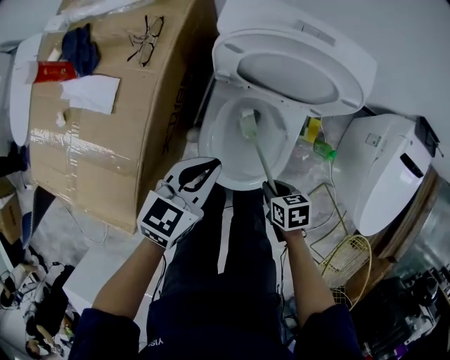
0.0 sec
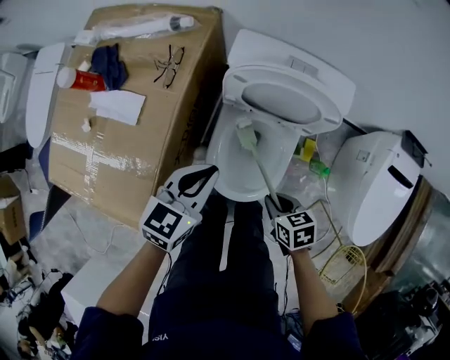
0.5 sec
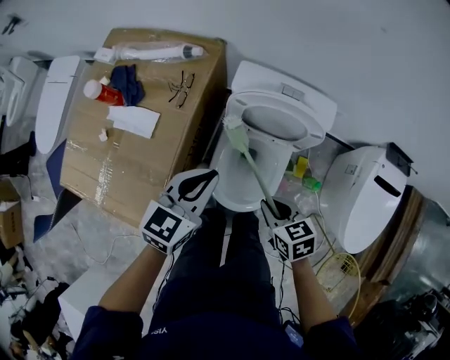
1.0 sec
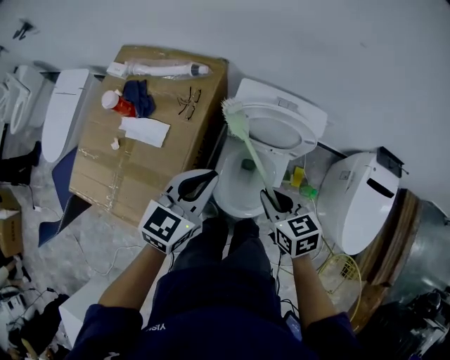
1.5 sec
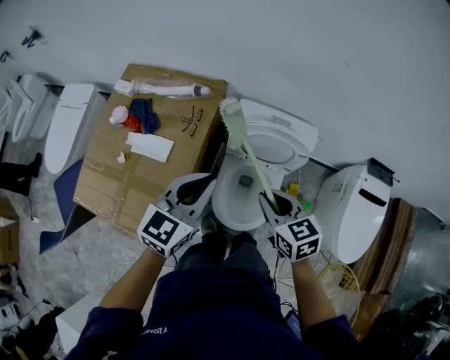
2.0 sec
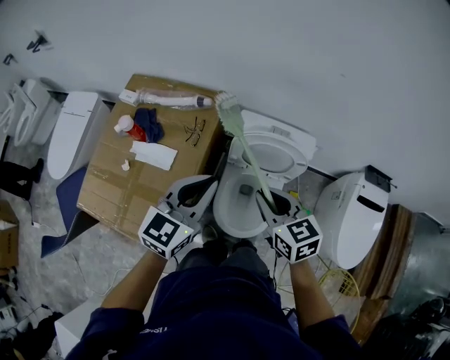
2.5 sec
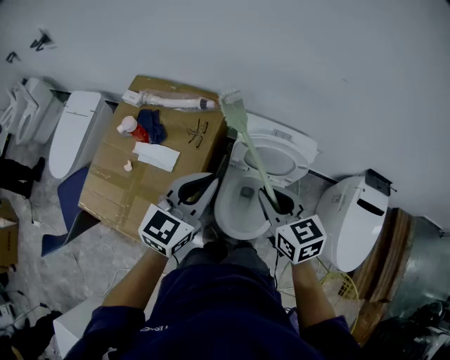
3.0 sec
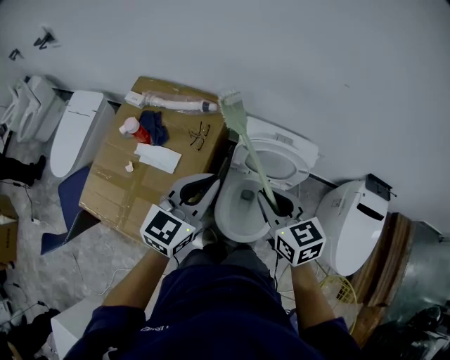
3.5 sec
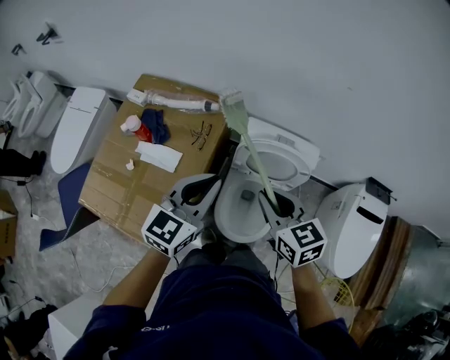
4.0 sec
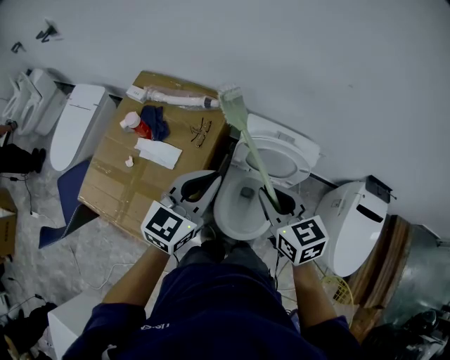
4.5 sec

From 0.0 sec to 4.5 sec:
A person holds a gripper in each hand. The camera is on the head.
From 0.0 sec to 2.0 sec: The two grippers go some 35 cm upward. The left gripper turns by about 20 degrees; the right gripper turns by roughly 40 degrees.
From 2.0 sec to 4.5 sec: The right gripper goes roughly 10 cm upward.

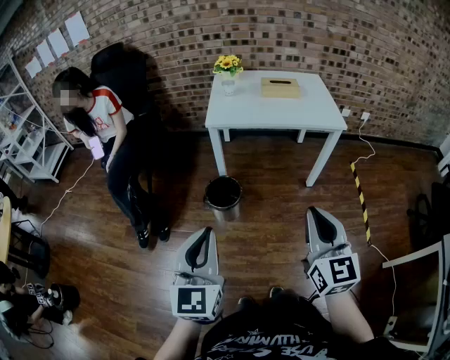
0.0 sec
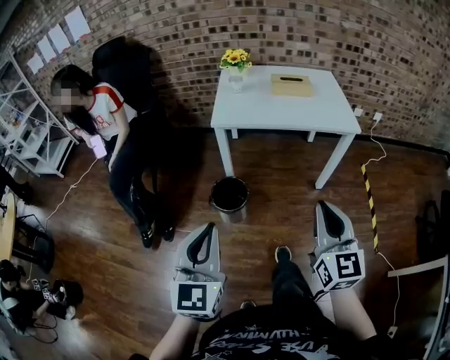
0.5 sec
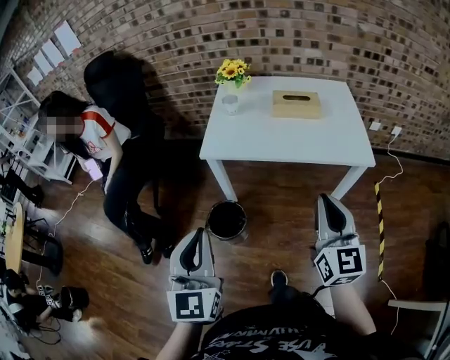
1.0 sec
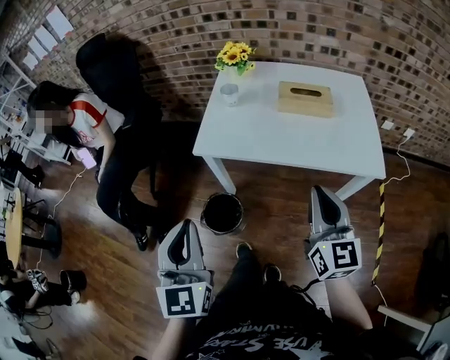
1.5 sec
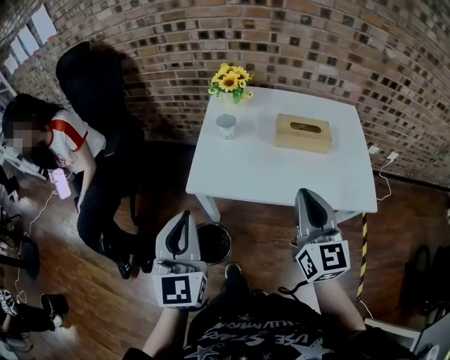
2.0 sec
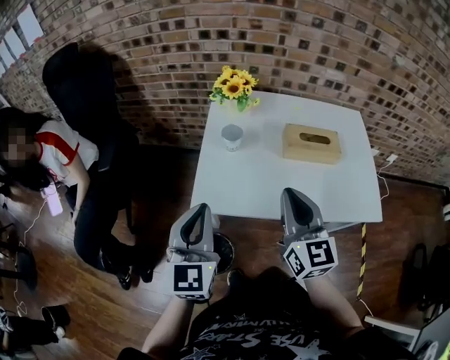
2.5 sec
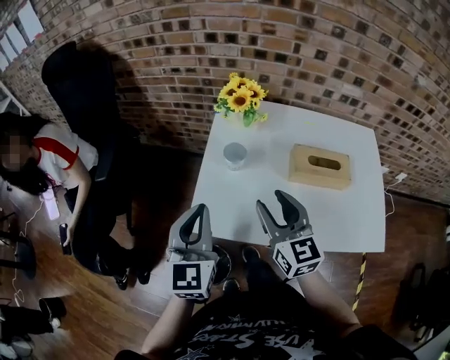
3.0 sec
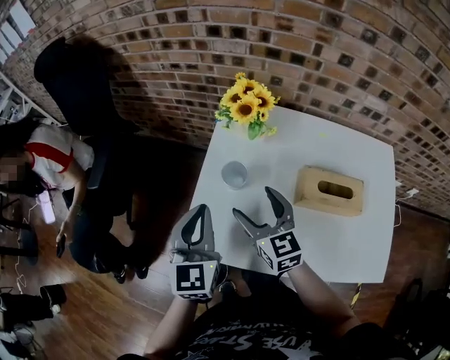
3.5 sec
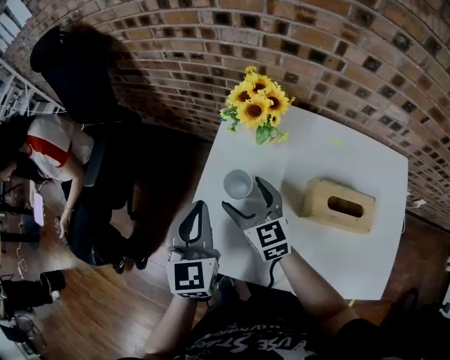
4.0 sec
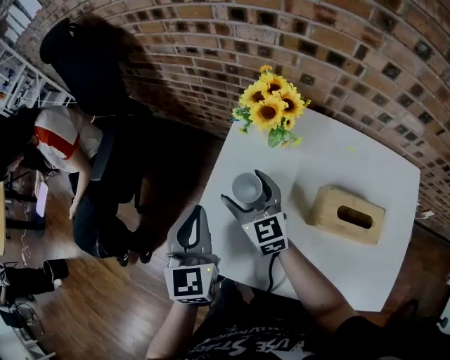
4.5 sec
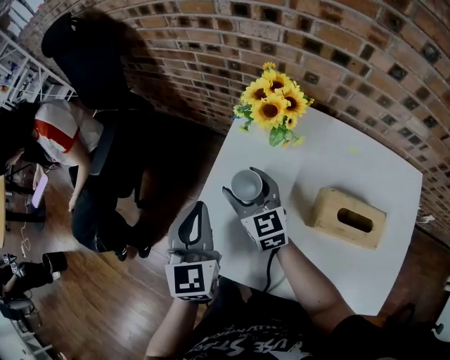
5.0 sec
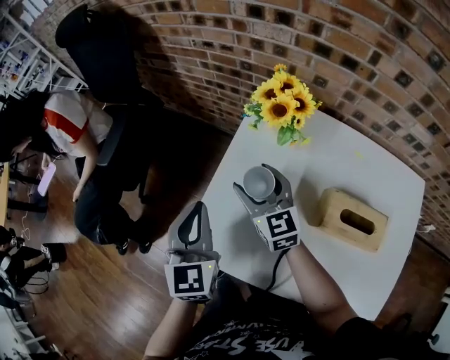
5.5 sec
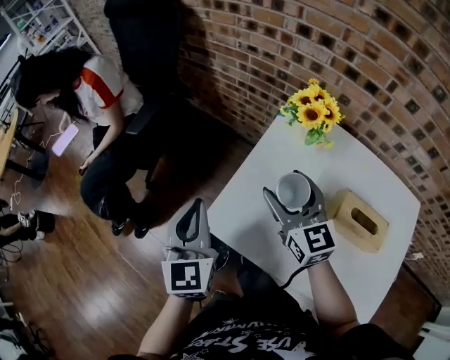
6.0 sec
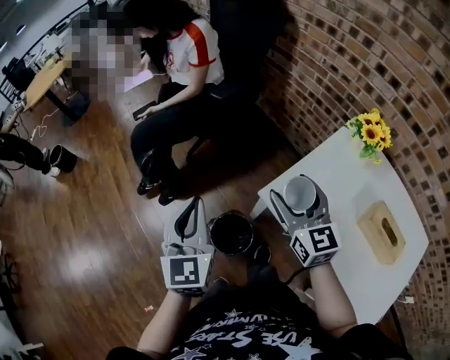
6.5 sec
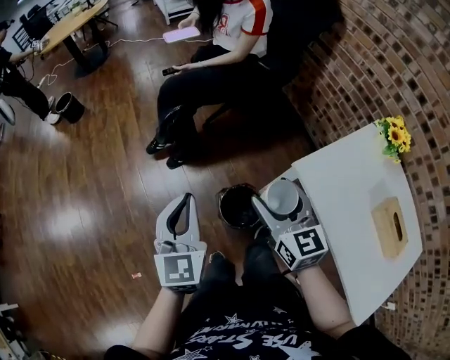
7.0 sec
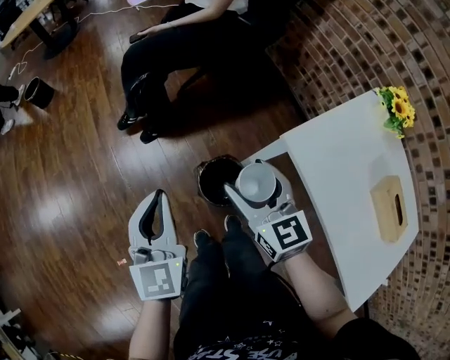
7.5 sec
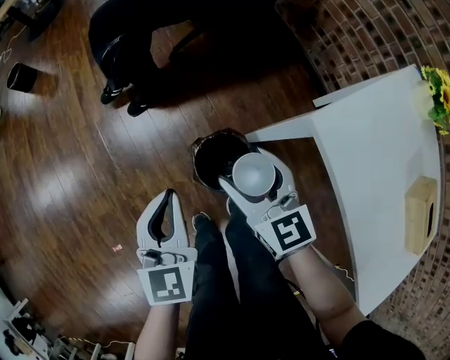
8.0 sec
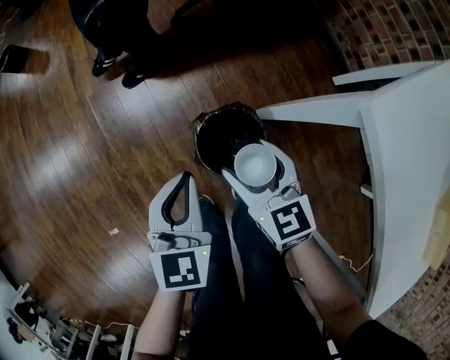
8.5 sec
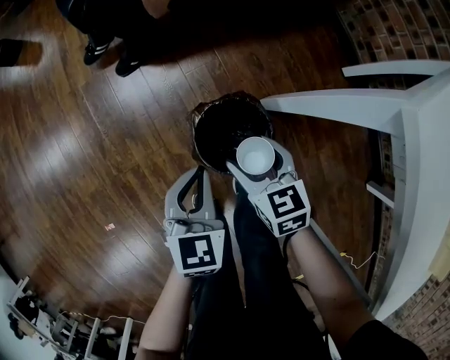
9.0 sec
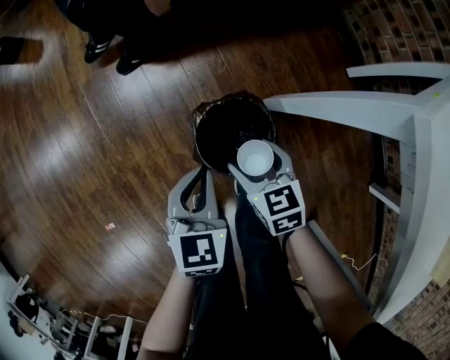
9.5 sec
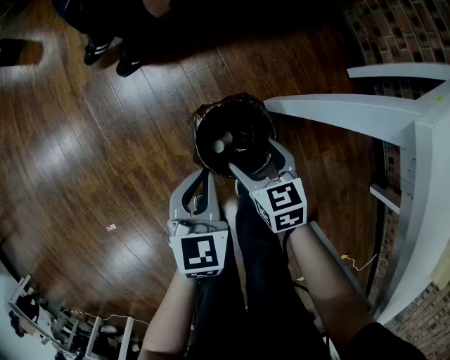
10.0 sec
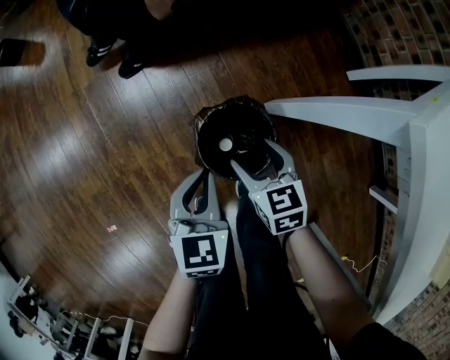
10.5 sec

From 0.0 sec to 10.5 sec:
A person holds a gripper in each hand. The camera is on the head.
From 0.0 sec to 2.0 sec: The two grippers travel together, forward, roughly 50 cm.
From 2.0 sec to 4.0 sec: Both grippers travel together forward and downward, some 35 cm. The right gripper rotates roughly 40 degrees, and opens its fingers.
From 4.0 sec to 6.5 sec: The right gripper moves approximately 25 cm, and swivels roughly 30 degrees. The left gripper ends up roughly 35 cm from where it was, and rotates approximately 40 degrees.
From 6.5 sec to 8.5 sec: The left gripper goes approximately 35 cm downward, and changes its angle by roughly 20 degrees. Meanwhile the right gripper is displaced downward and to the left by about 40 cm, and swivels approximately 30 degrees.
From 8.5 sec to 10.5 sec: Both grippers move downward, about 15 cm.

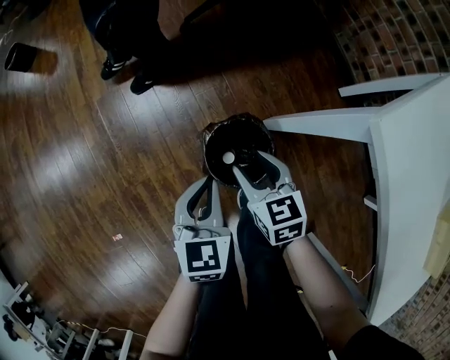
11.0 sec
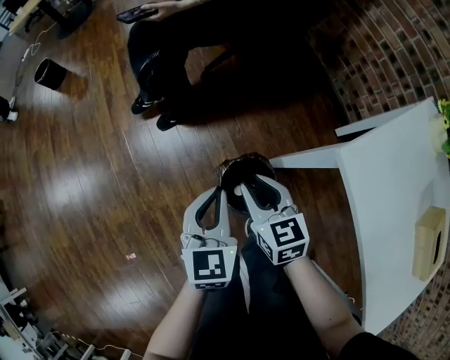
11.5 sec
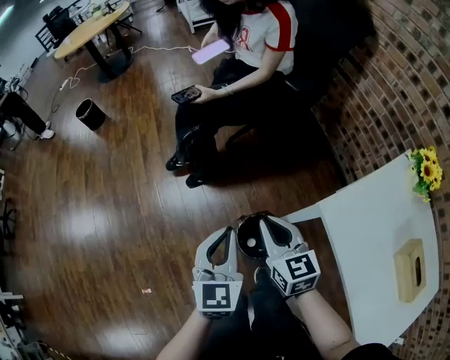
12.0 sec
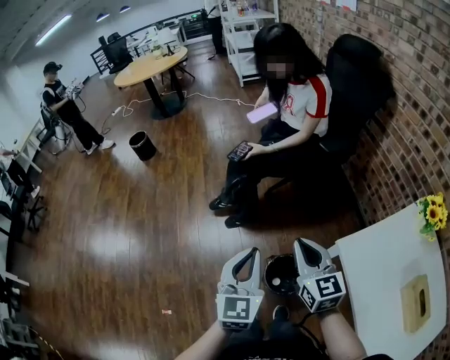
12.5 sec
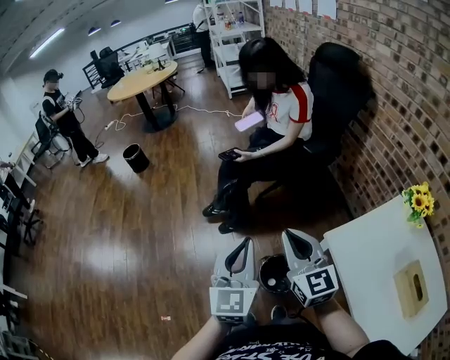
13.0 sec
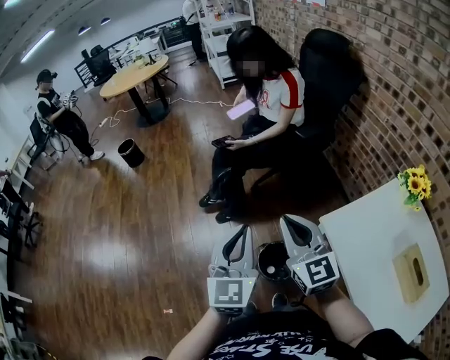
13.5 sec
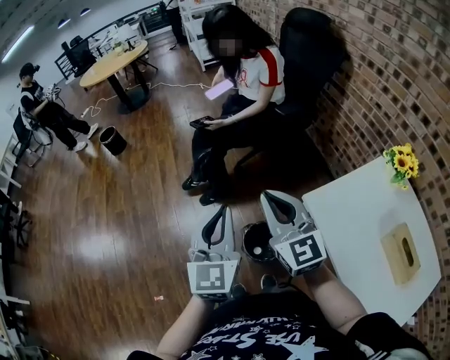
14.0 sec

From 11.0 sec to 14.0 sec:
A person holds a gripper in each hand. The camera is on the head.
From 11.0 sec to 12.5 sec: The grippers both shift upward by about 40 cm. The left gripper rotates approximately 30 degrees. Meanwhile the right gripper tilts its fingers about 30 degrees upward, and closes its fingers.
From 12.5 sec to 14.0 sec: The grippers both shift upward by approximately 10 cm.

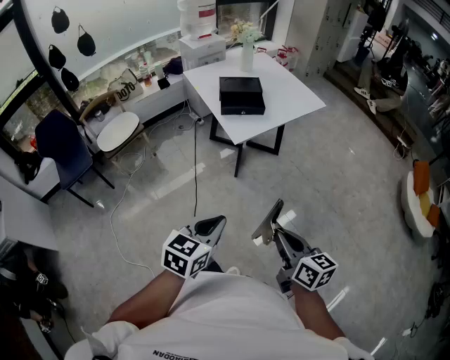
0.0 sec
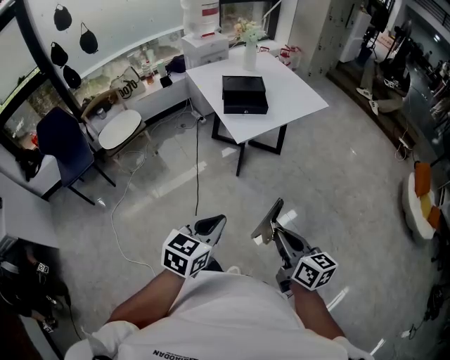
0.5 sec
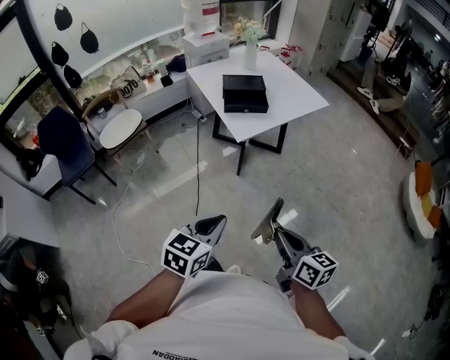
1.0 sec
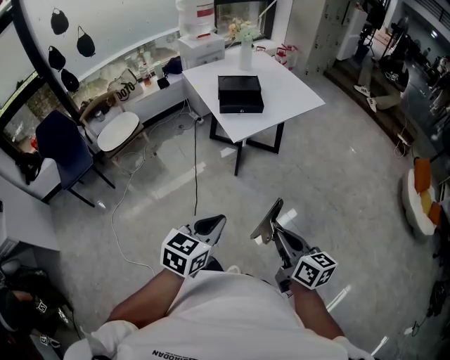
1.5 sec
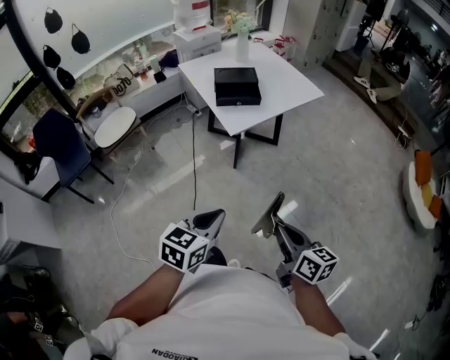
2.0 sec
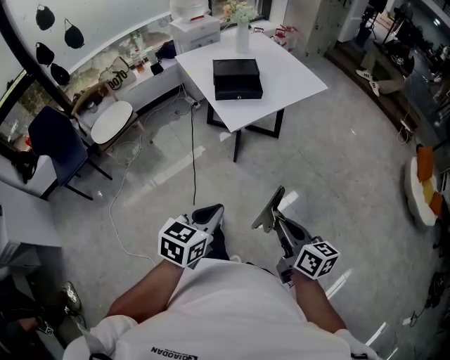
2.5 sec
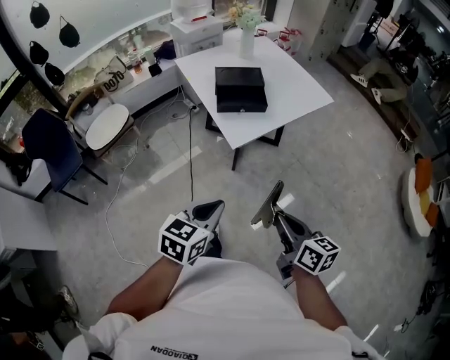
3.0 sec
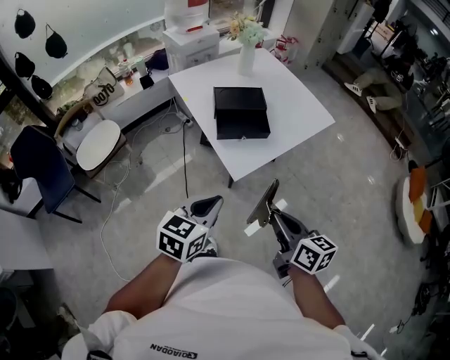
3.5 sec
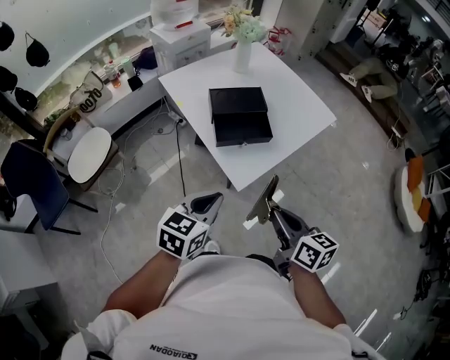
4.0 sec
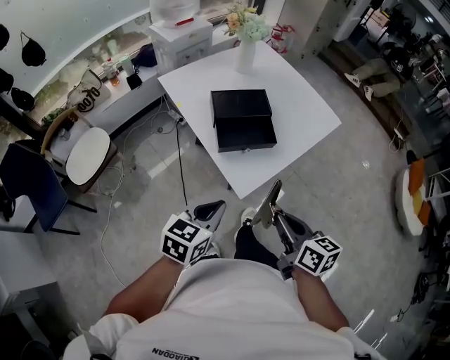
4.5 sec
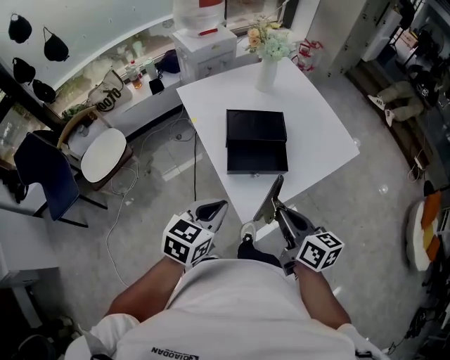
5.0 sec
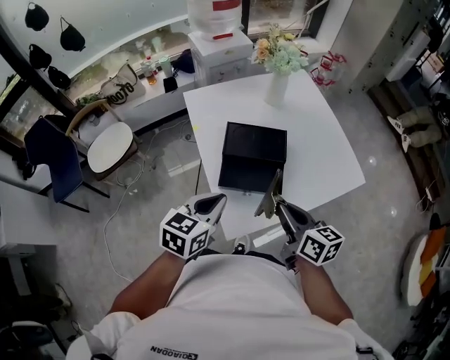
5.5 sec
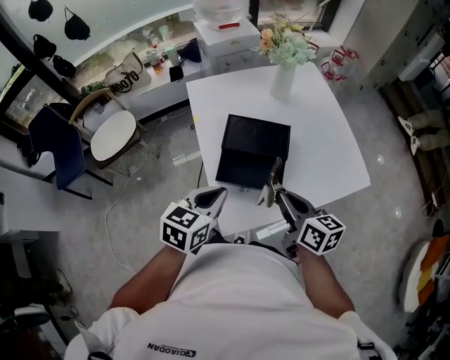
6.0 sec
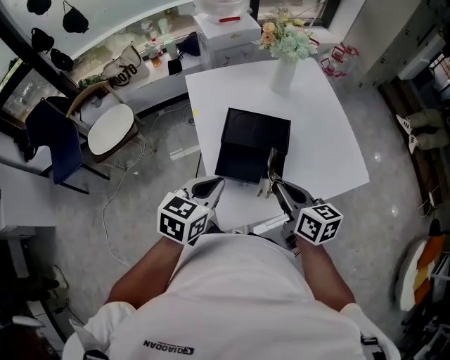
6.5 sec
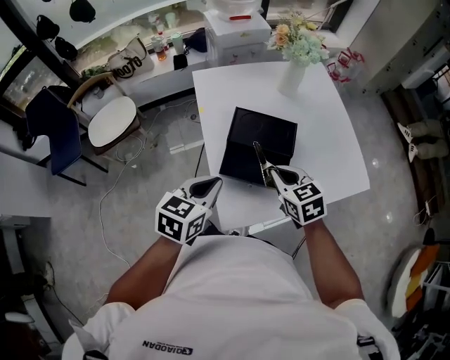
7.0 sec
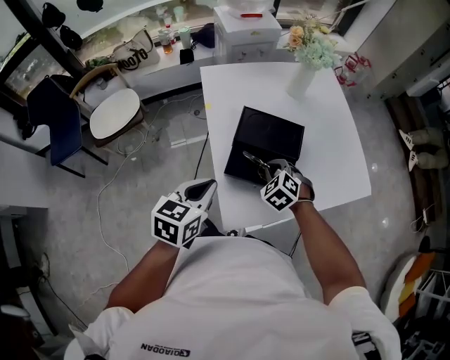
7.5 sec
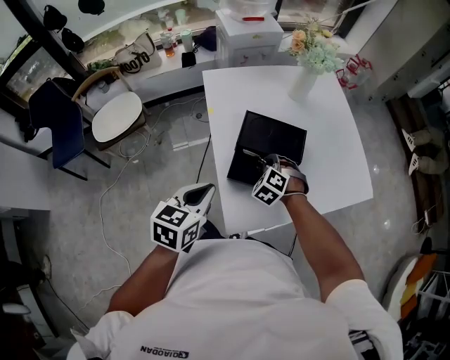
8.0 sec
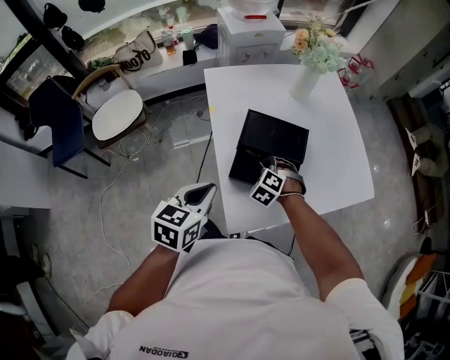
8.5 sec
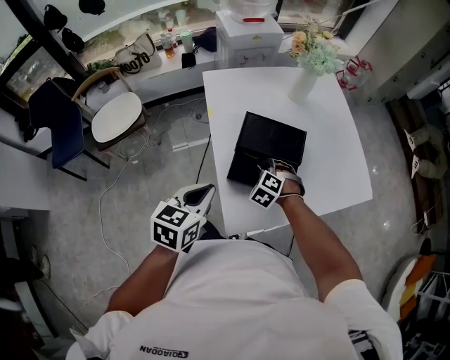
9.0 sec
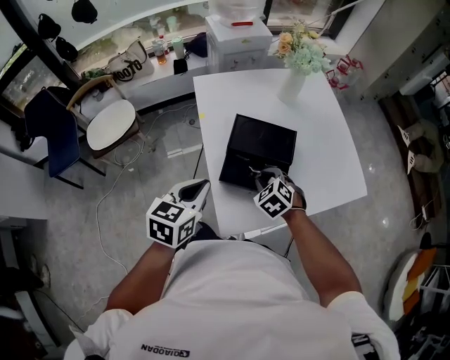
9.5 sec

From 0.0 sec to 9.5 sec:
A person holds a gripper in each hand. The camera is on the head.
From 0.0 sec to 2.0 sec: The grippers stay close to where they were, moving slightly.
From 2.0 sec to 4.0 sec: The grippers both shift forward by approximately 35 cm.
From 4.0 sec to 5.5 sec: Both grippers travel together forward, about 20 cm.
From 5.5 sec to 7.5 sec: The left gripper goes some 5 cm to the left. The right gripper is displaced downward, forward and to the left by some 20 cm, and rotates around the line of its fingers by roughly 70 degrees, counterclockwise from behind.
From 7.5 sec to 9.5 sec: The right gripper opens its fingers.
